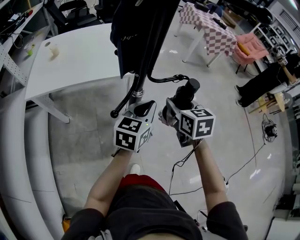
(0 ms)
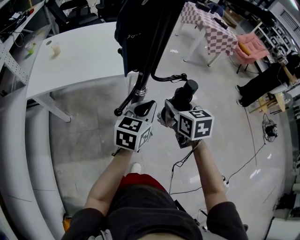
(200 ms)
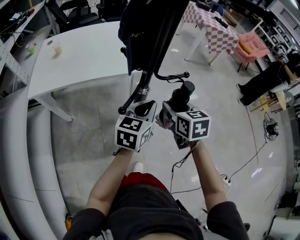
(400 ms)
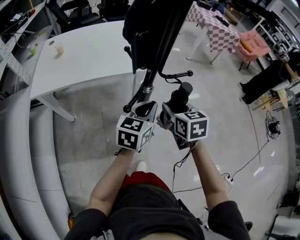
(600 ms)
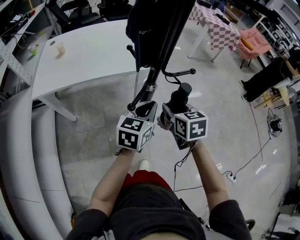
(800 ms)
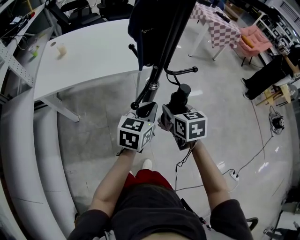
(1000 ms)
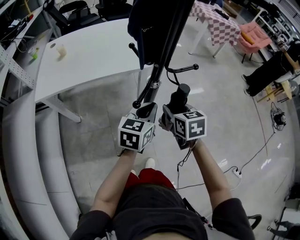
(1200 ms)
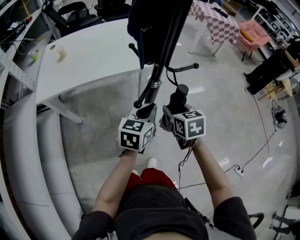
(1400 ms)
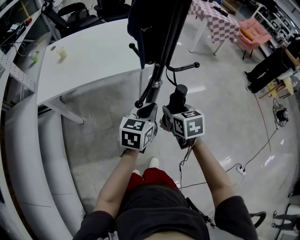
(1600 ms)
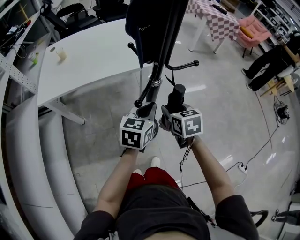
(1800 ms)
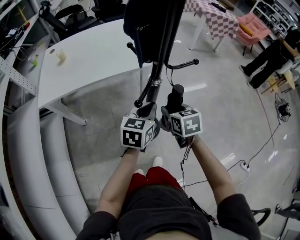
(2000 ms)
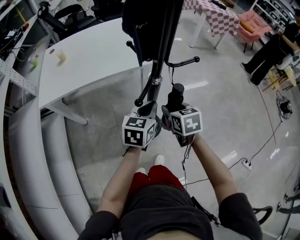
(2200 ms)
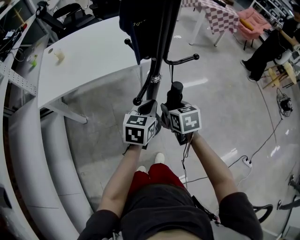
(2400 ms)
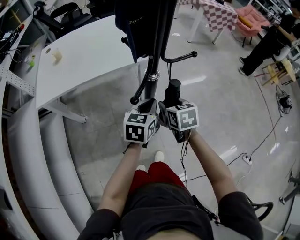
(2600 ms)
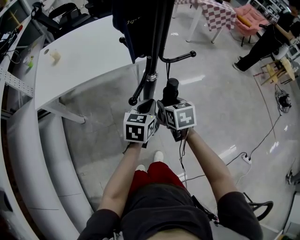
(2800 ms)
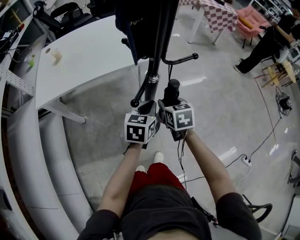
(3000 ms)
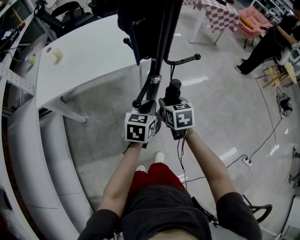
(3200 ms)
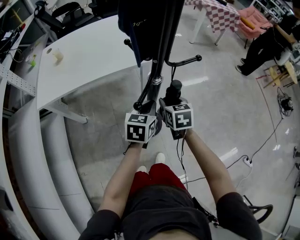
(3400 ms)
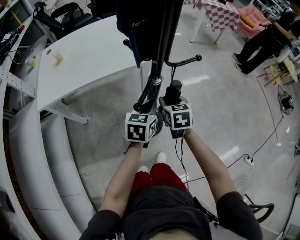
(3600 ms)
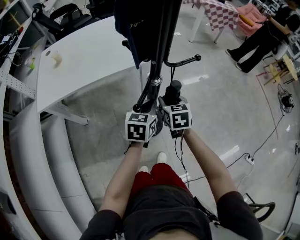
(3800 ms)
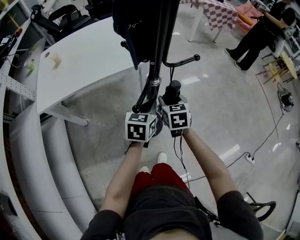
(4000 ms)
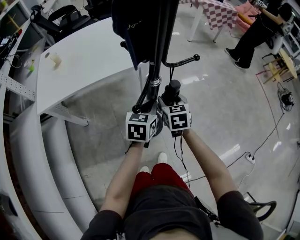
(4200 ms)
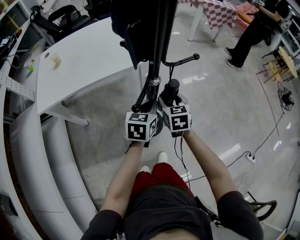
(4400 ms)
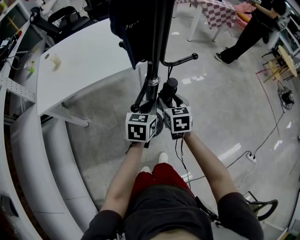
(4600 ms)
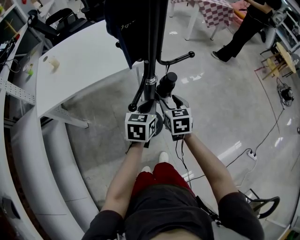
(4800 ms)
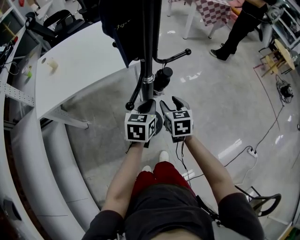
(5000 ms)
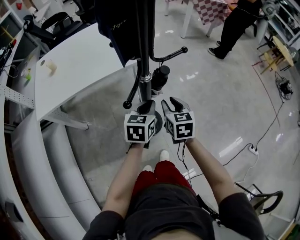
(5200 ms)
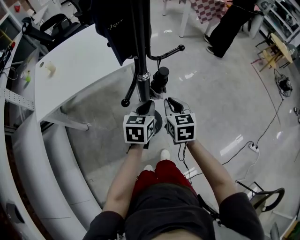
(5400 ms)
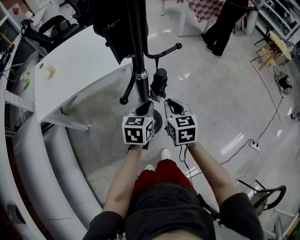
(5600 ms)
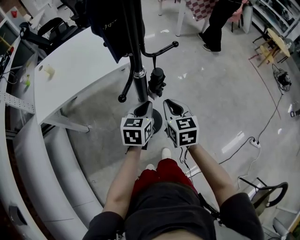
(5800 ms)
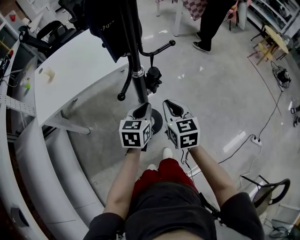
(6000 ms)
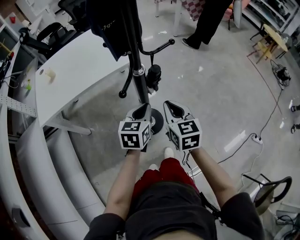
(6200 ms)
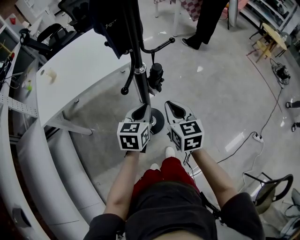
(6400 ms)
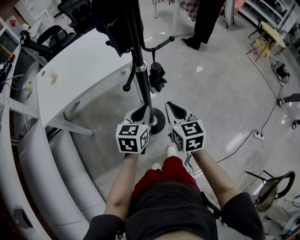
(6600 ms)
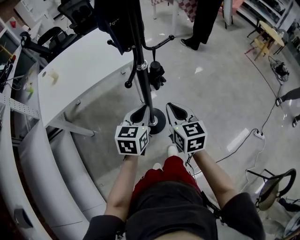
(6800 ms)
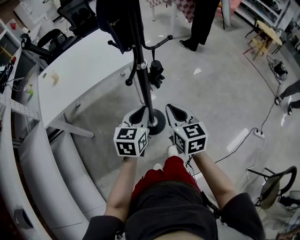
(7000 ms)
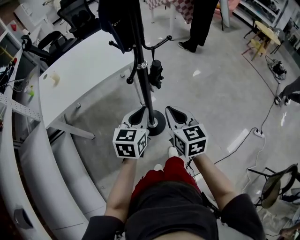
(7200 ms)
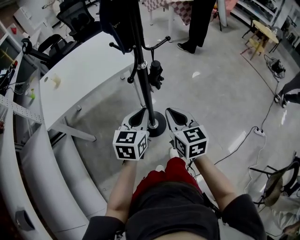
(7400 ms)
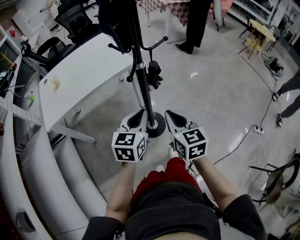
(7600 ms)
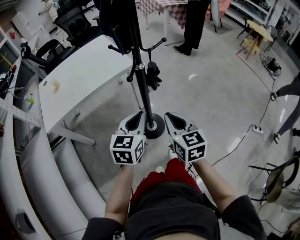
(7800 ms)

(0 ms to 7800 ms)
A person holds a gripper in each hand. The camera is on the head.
0 ms - 1600 ms: The left gripper shifts some 5 cm to the left. The right gripper shifts about 10 cm downward, to the left and backward.
1600 ms - 3200 ms: Both grippers travel together downward, some 5 cm.
3200 ms - 4600 ms: The grippers move only a little.
4600 ms - 6200 ms: The left gripper moves backward, roughly 5 cm. The right gripper travels backward and upward by roughly 15 cm, and closes up.
6200 ms - 7800 ms: The left gripper is displaced backward and upward by some 15 cm; the right gripper travels backward by some 15 cm.

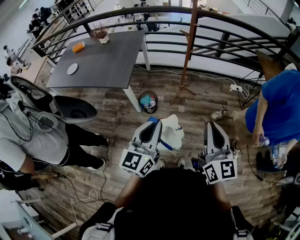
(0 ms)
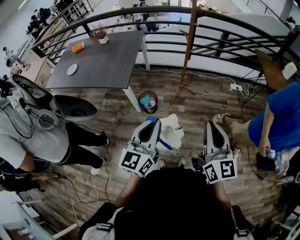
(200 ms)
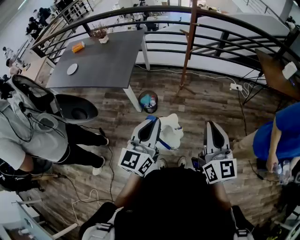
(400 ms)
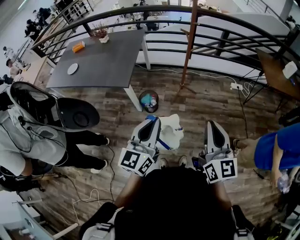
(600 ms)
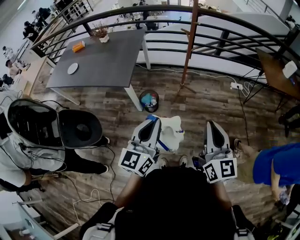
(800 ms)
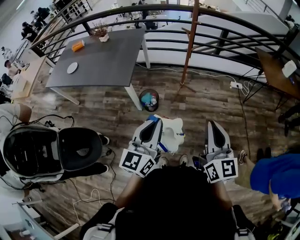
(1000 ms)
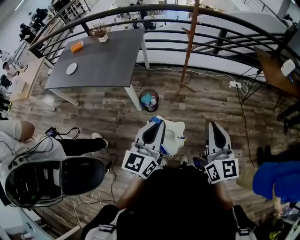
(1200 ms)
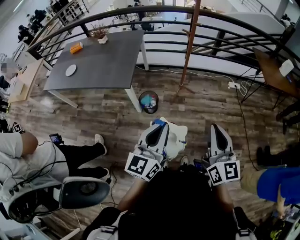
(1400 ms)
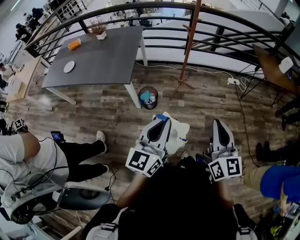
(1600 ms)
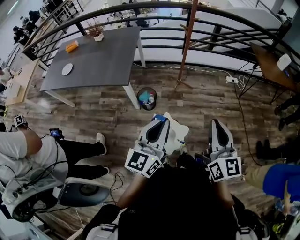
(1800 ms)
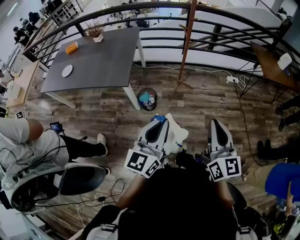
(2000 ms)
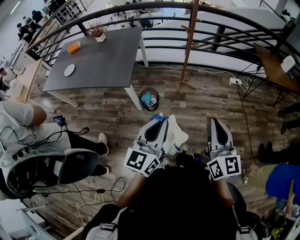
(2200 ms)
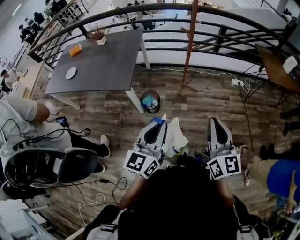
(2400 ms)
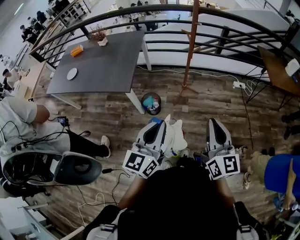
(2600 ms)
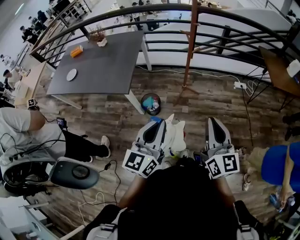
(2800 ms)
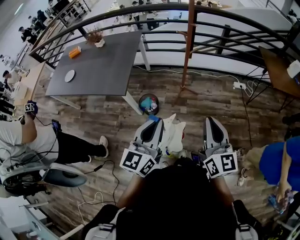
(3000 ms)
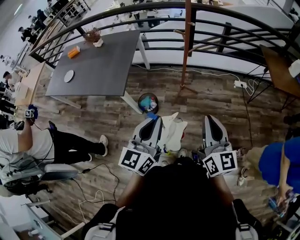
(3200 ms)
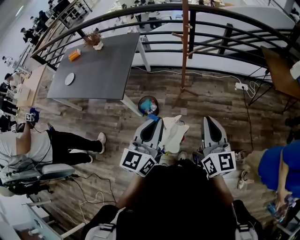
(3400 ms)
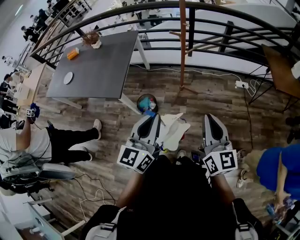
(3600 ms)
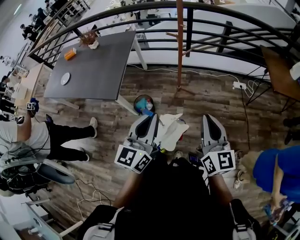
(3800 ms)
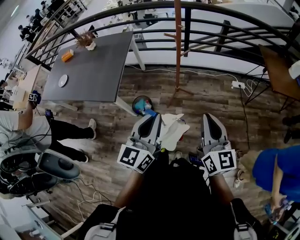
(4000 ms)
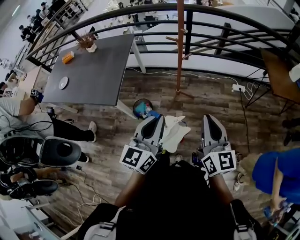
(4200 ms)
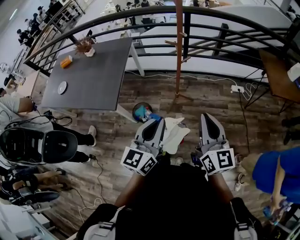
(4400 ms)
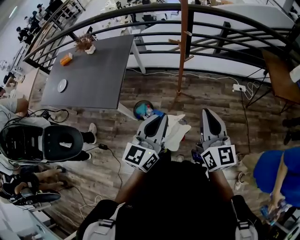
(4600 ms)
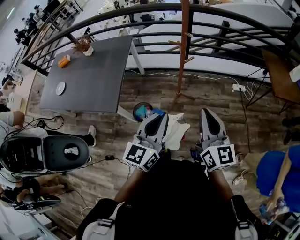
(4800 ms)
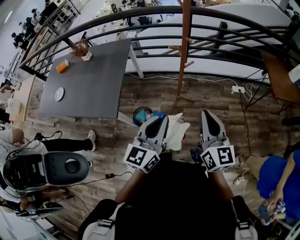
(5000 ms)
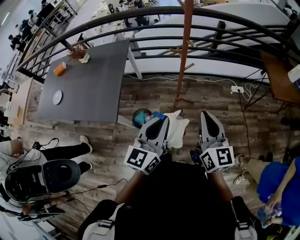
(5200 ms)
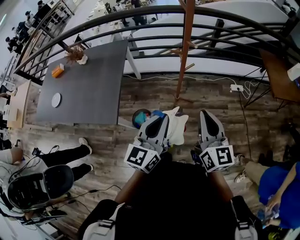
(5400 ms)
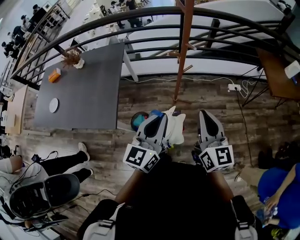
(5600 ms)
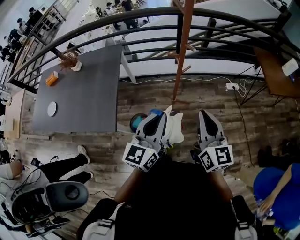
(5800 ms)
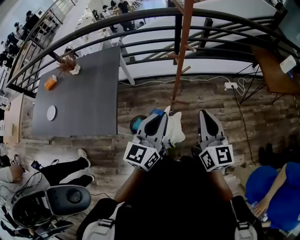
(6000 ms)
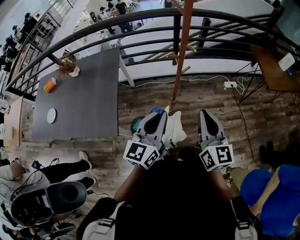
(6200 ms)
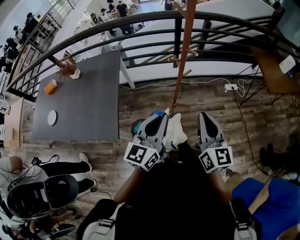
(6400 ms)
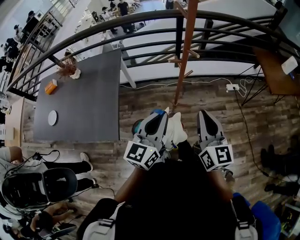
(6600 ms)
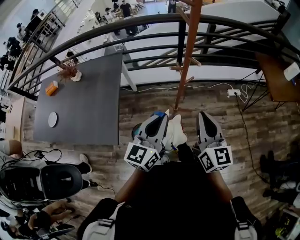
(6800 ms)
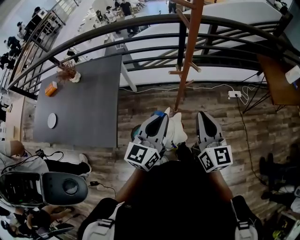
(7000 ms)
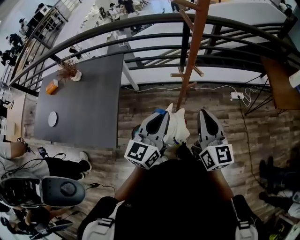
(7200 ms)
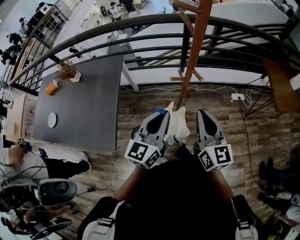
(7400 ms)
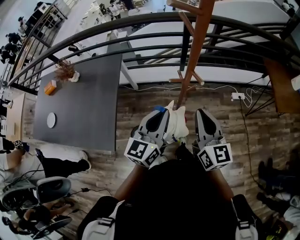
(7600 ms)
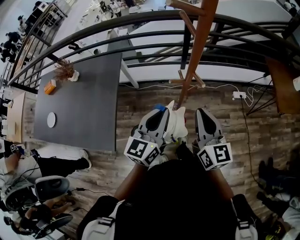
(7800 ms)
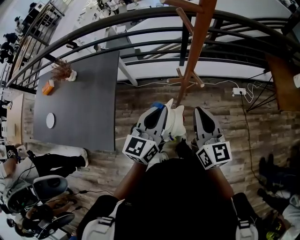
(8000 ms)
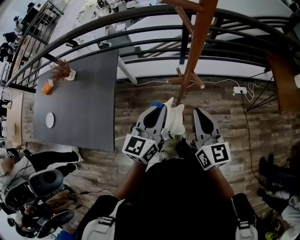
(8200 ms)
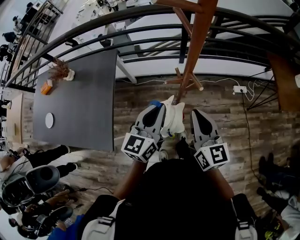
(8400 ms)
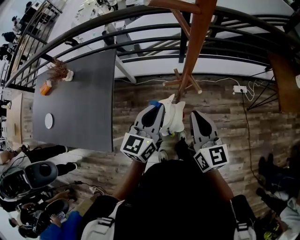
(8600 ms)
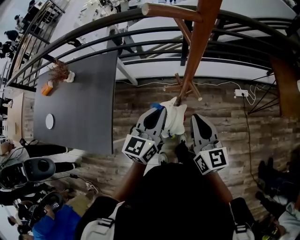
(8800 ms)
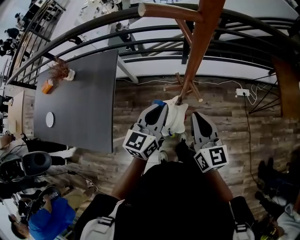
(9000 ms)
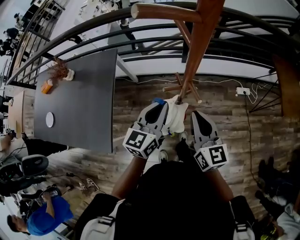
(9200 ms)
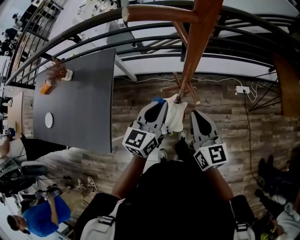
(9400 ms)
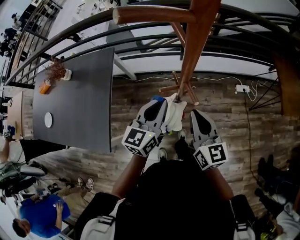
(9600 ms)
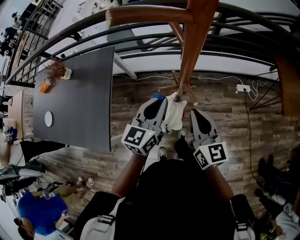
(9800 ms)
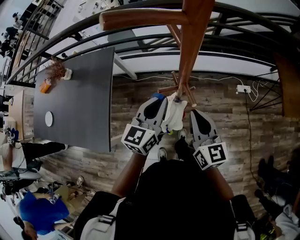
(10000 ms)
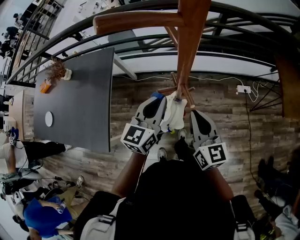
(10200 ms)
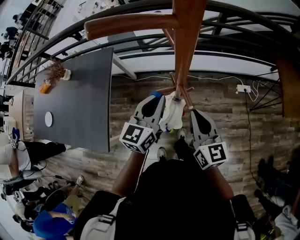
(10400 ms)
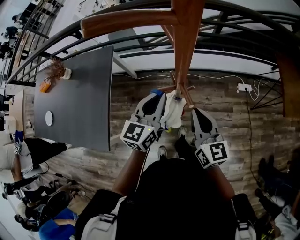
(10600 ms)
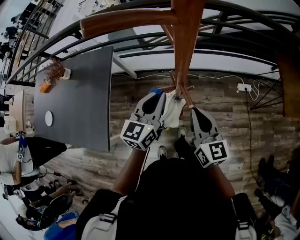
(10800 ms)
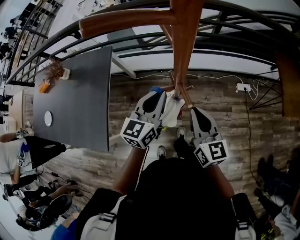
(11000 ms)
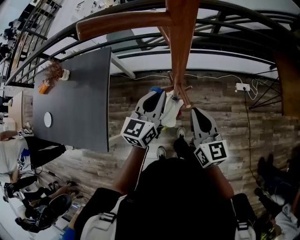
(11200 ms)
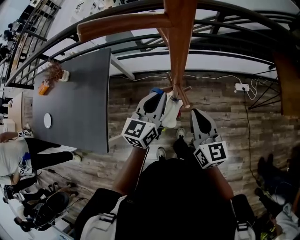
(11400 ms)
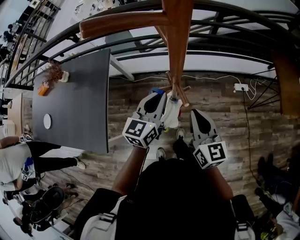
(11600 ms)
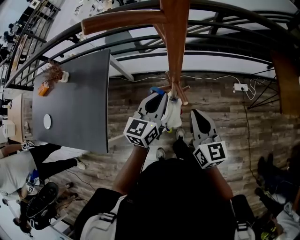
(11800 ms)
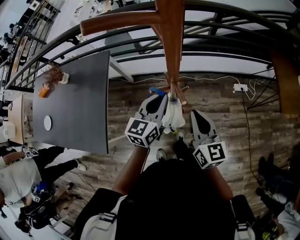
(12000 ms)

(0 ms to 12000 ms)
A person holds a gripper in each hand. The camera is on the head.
0 ms - 1600 ms: There are only small adjustments of the grippers.
1600 ms - 3000 ms: Both grippers travel together forward, about 10 cm.
3000 ms - 4400 ms: The left gripper goes roughly 10 cm forward and to the right; the right gripper is displaced forward by approximately 10 cm.
4400 ms - 6000 ms: The two grippers go some 15 cm forward and to the left.
6000 ms - 7600 ms: Both grippers travel together forward, some 15 cm.
7600 ms - 9000 ms: The right gripper shifts about 5 cm downward. Meanwhile the left gripper heads forward and downward, covering roughly 10 cm.
9000 ms - 10400 ms: The grippers stay close to where they were, moving slightly.
10400 ms - 12000 ms: The grippers make only small movements.

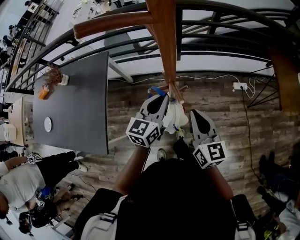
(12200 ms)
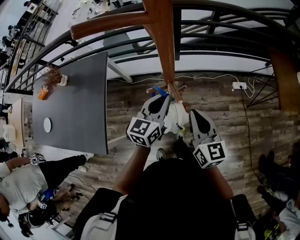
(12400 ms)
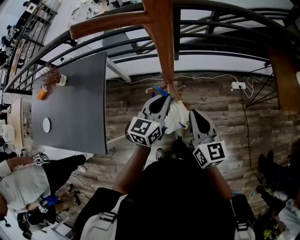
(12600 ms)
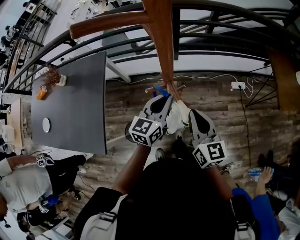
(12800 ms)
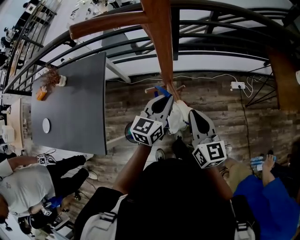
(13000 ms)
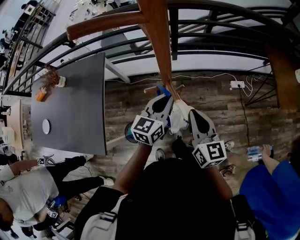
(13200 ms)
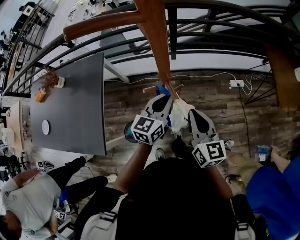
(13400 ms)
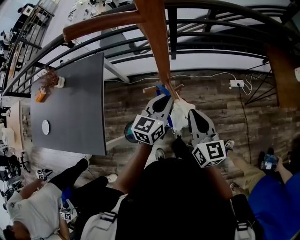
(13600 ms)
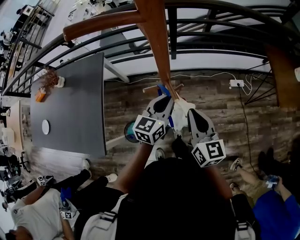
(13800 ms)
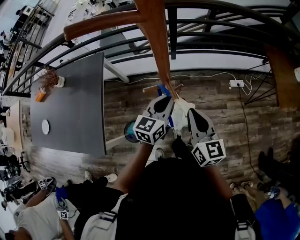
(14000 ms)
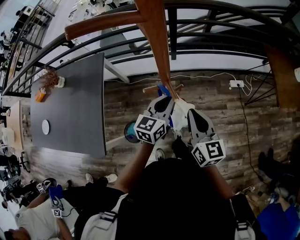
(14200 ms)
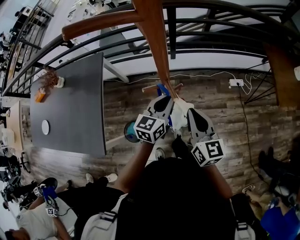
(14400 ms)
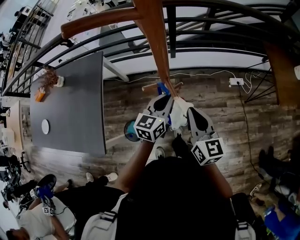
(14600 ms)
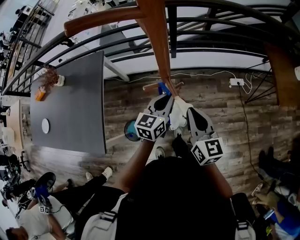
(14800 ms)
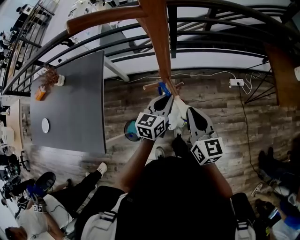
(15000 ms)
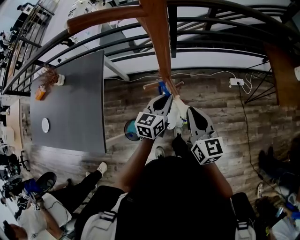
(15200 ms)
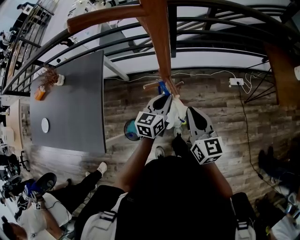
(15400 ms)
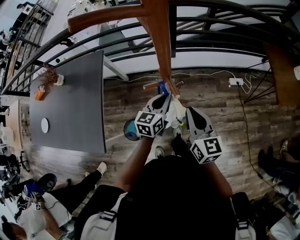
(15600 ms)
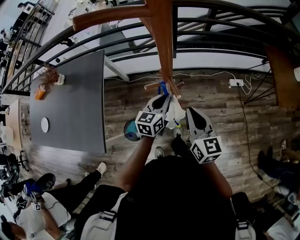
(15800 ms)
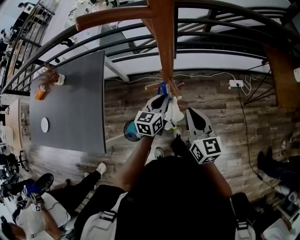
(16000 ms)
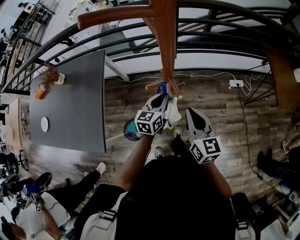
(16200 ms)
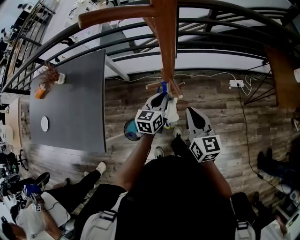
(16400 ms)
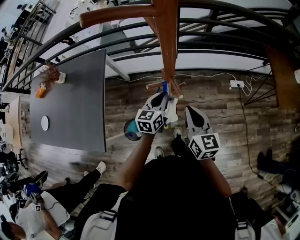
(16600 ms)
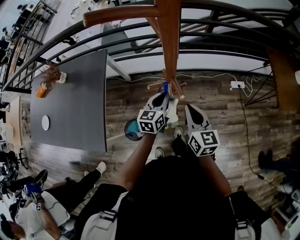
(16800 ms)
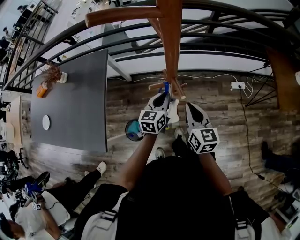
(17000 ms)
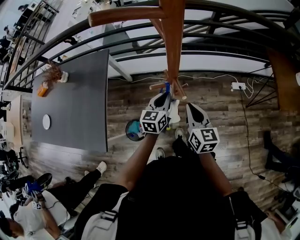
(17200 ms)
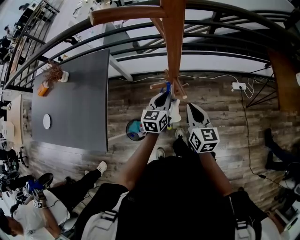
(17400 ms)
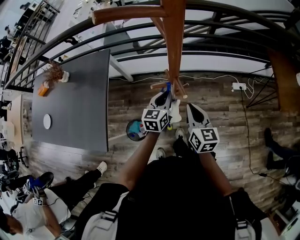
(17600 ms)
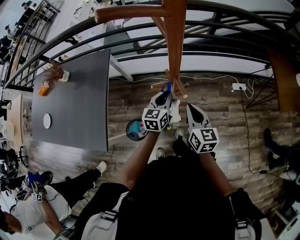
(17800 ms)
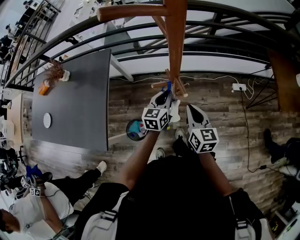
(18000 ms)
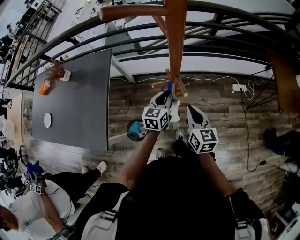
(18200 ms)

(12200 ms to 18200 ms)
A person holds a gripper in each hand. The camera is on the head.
12200 ms - 13800 ms: The grippers stay close to where they were, moving slightly.
13800 ms - 15200 ms: The left gripper moves about 5 cm.
15200 ms - 16600 ms: The grippers stay close to where they were, moving slightly.
16600 ms - 18200 ms: The grippers move only a little.
